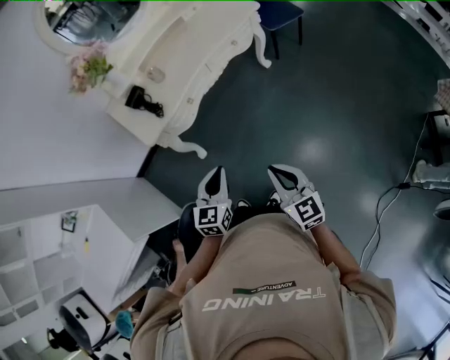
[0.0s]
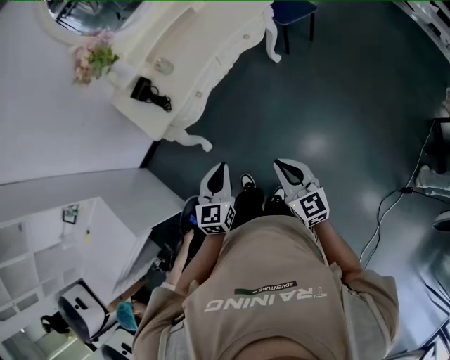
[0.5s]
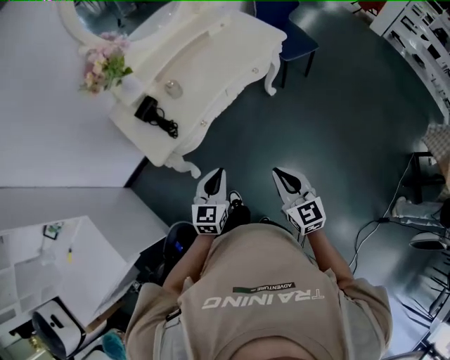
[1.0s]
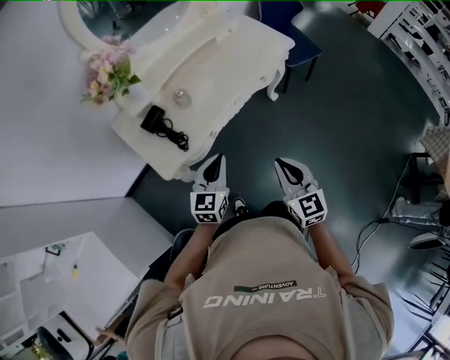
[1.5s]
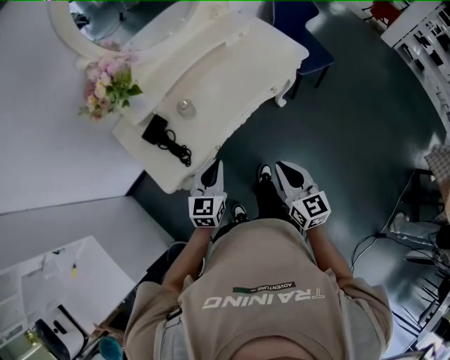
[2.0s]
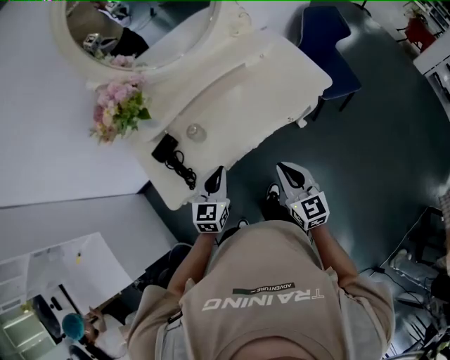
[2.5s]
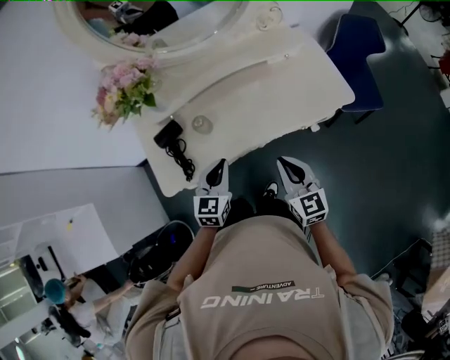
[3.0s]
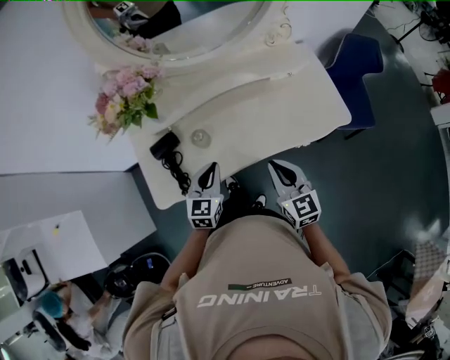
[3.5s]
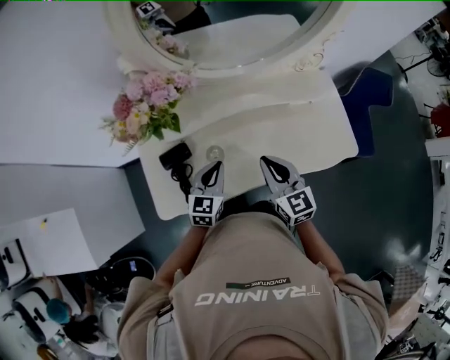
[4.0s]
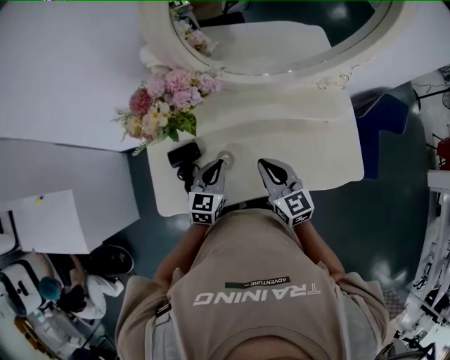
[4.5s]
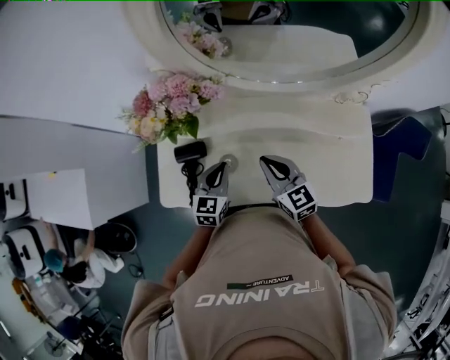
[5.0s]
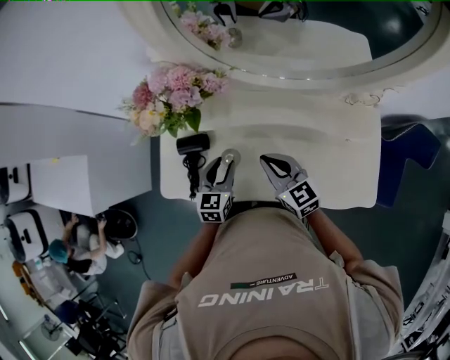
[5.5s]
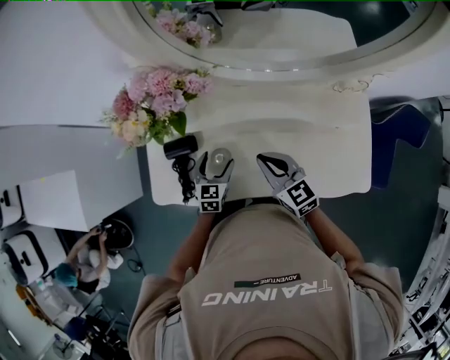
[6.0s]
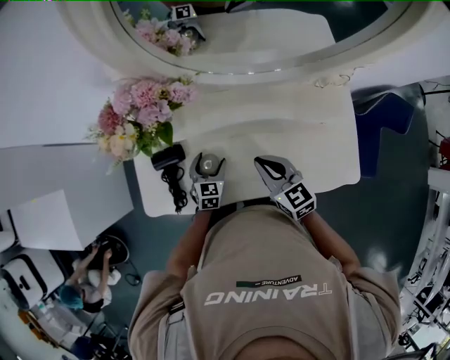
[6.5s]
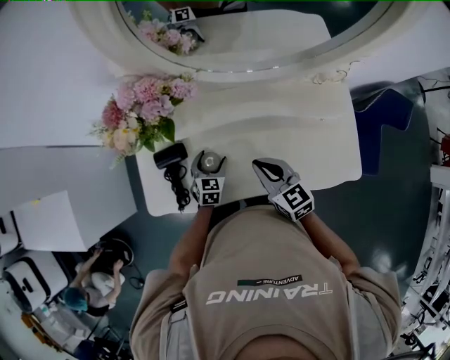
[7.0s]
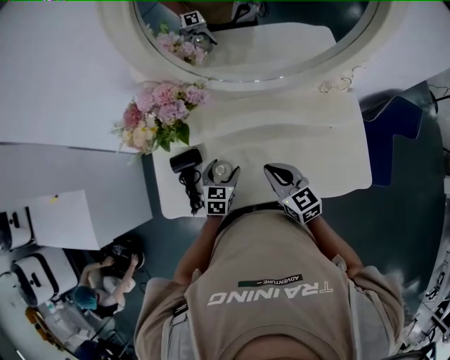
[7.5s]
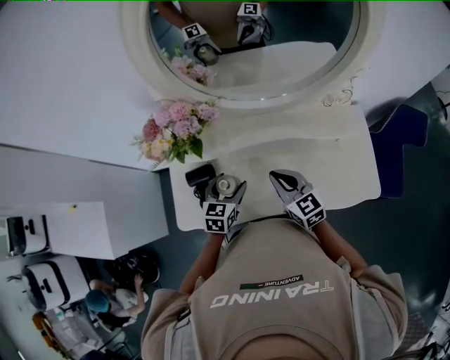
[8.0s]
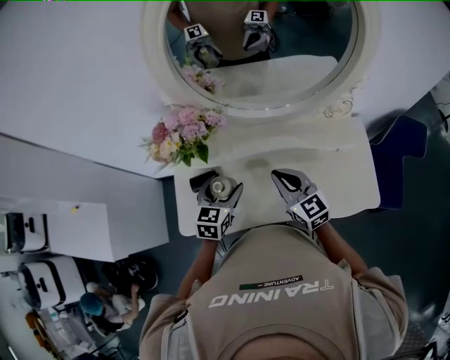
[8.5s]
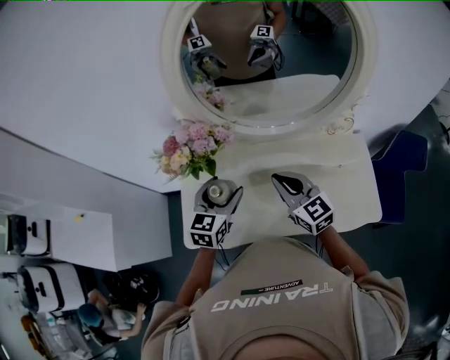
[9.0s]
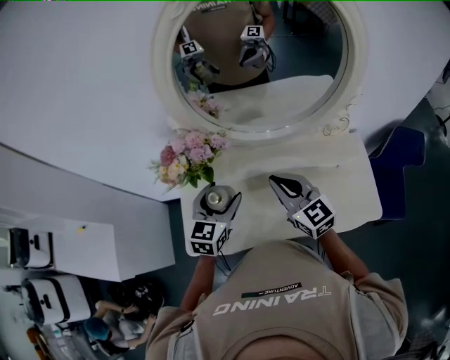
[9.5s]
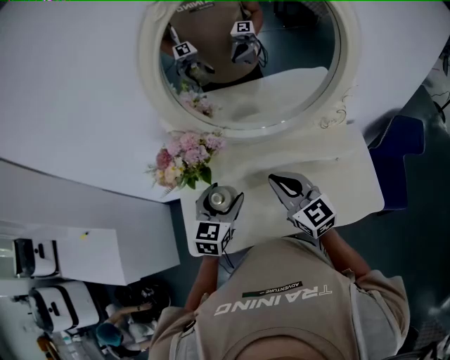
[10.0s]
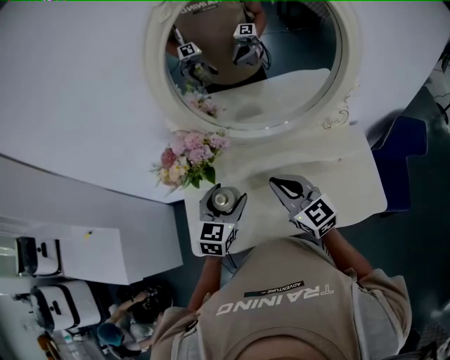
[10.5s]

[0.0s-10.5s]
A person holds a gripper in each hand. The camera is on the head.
0.0s to 2.0s: Both grippers travel together forward, some 30 cm.
2.0s to 4.0s: The left gripper changes place by about 20 cm, and rotates some 20 degrees, while the right gripper ends up approximately 30 cm from where it was, and rotates approximately 30 degrees.
4.0s to 6.5s: The right gripper changes place by approximately 10 cm, and swivels some 20 degrees, while the left gripper shifts some 15 cm downward, turns by roughly 20 degrees, and opens.
6.5s to 8.5s: The left gripper travels upward by roughly 20 cm. Meanwhile the right gripper goes roughly 5 cm upward.
8.5s to 10.5s: Both grippers move upward, roughly 5 cm.

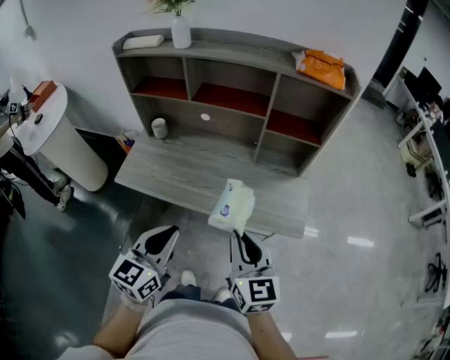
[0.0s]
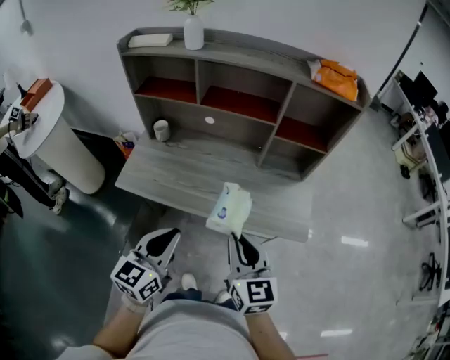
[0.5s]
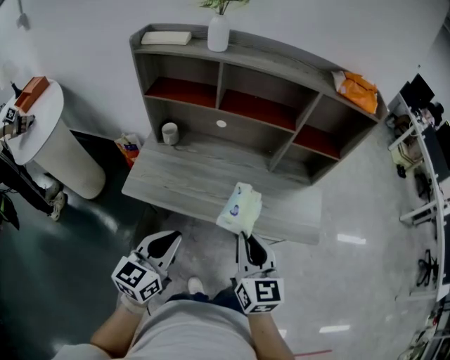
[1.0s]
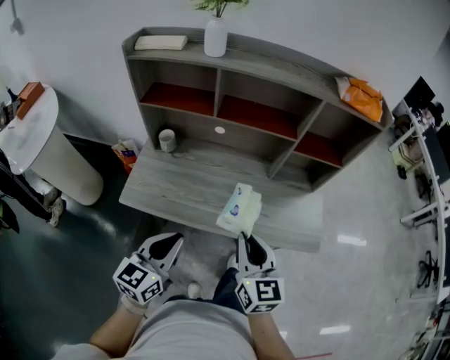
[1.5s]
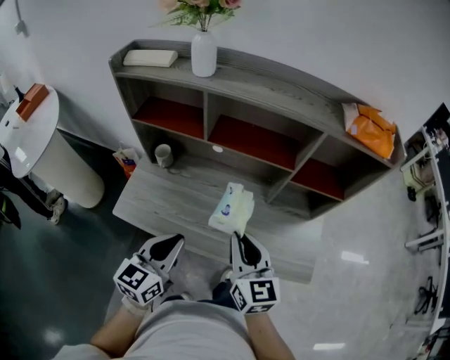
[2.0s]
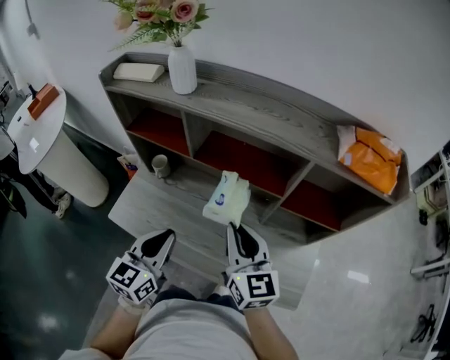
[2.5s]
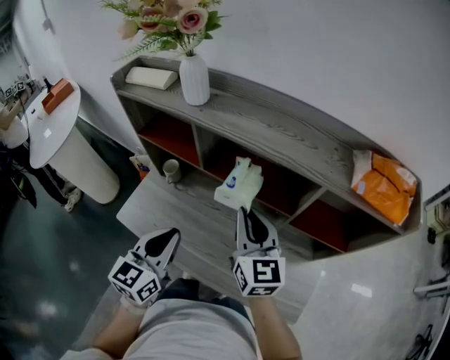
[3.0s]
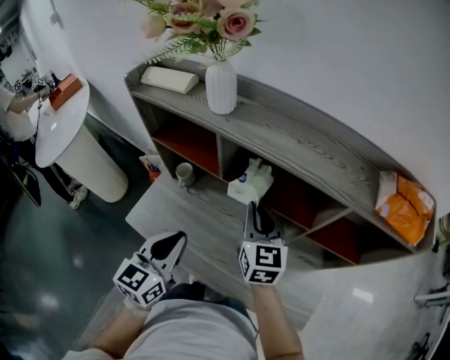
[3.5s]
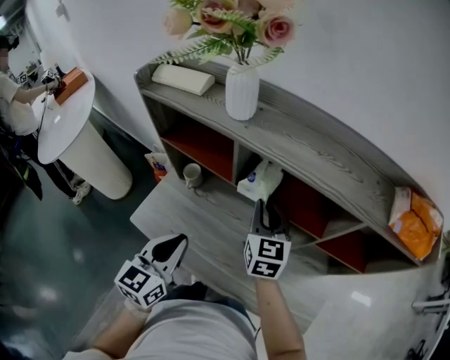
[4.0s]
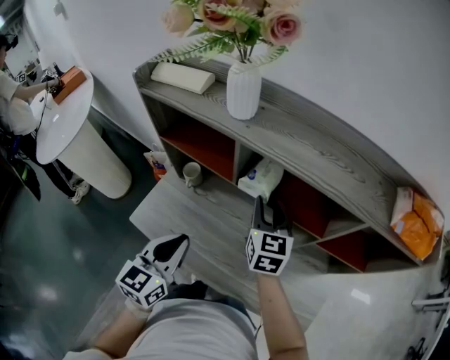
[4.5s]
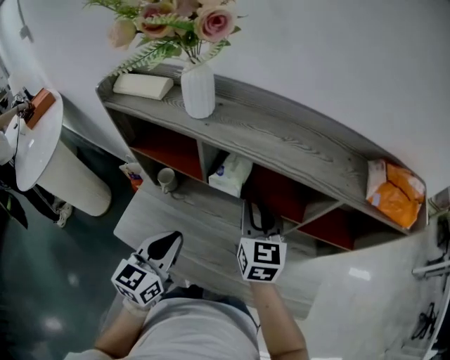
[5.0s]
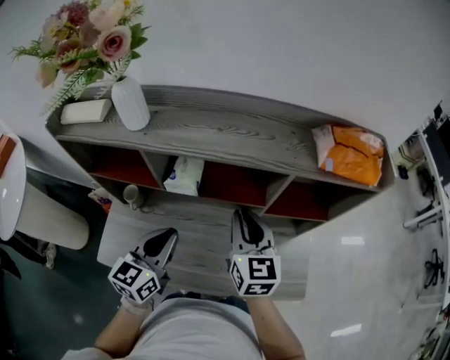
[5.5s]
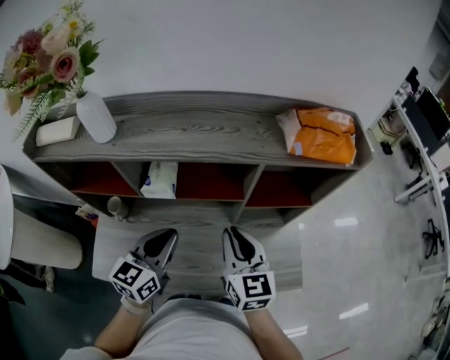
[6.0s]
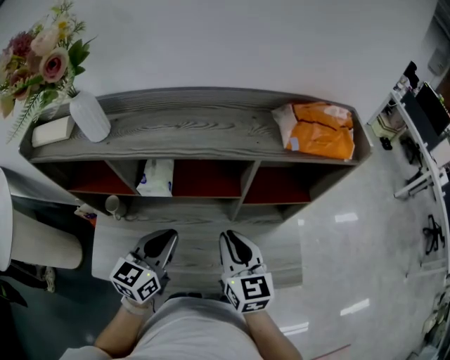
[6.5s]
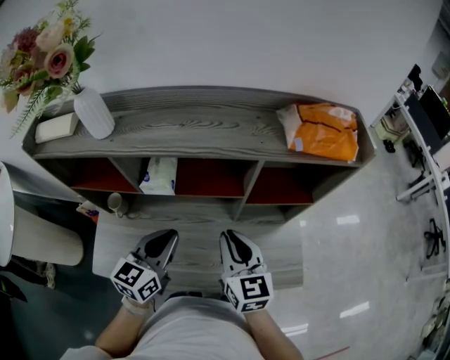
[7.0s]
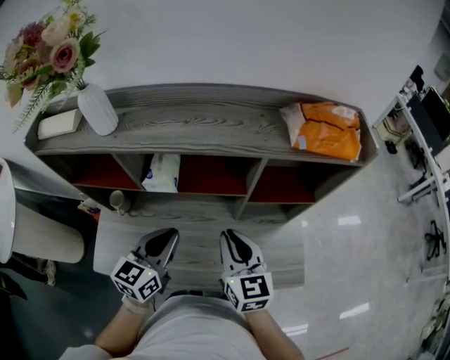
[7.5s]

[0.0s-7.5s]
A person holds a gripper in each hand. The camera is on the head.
0.0s to 2.0s: The two grippers go roughly 20 cm forward and to the left.
2.0s to 4.0s: The right gripper is displaced forward by approximately 25 cm. The left gripper is displaced forward by roughly 10 cm.
4.0s to 5.5s: The right gripper shifts about 15 cm to the right and backward; the left gripper shifts approximately 10 cm to the right and forward, and rotates approximately 20 degrees.
5.5s to 7.5s: The right gripper is displaced backward by some 5 cm.

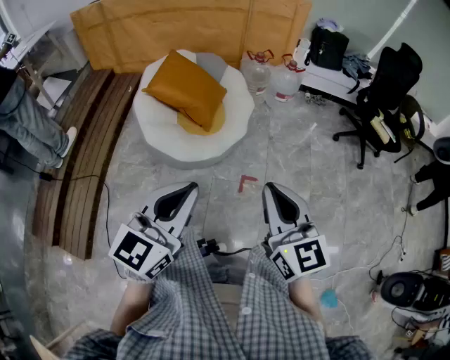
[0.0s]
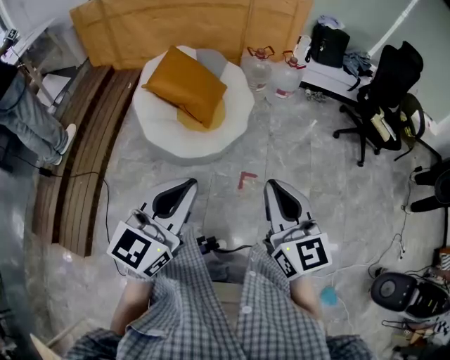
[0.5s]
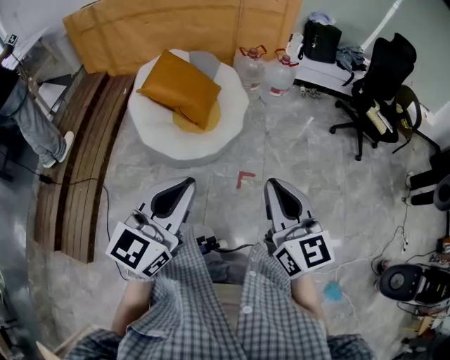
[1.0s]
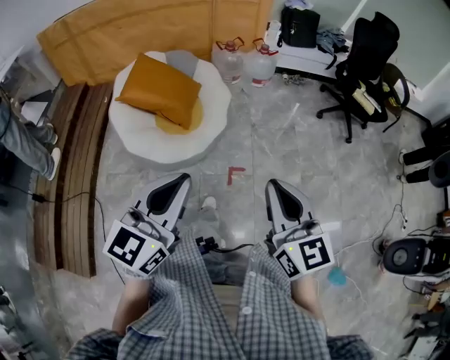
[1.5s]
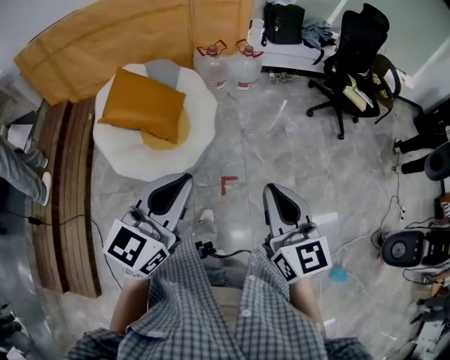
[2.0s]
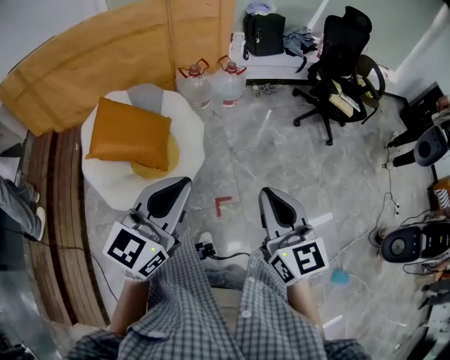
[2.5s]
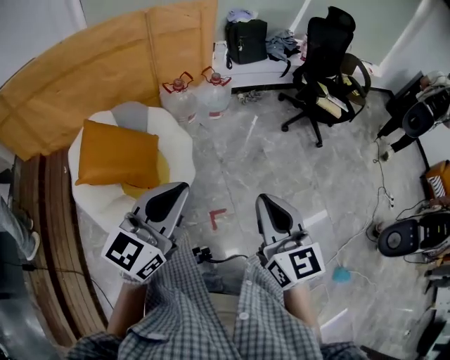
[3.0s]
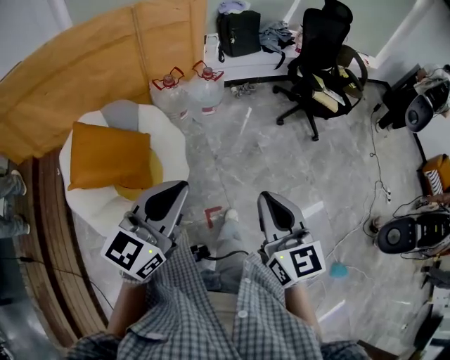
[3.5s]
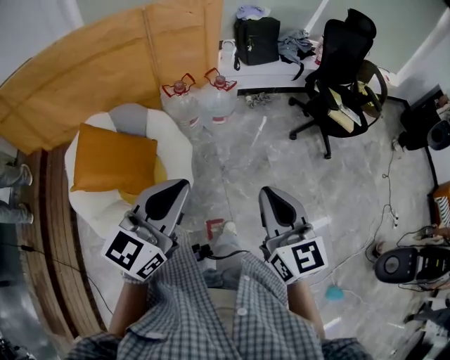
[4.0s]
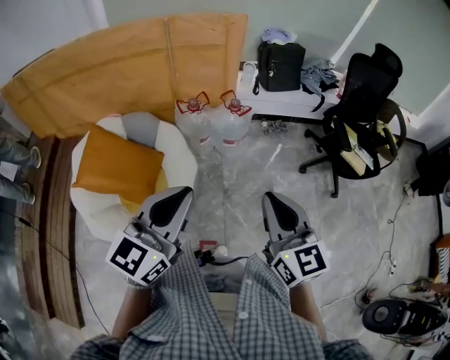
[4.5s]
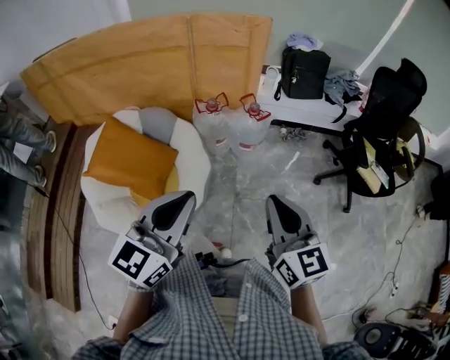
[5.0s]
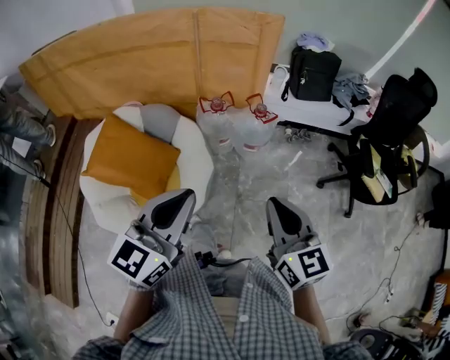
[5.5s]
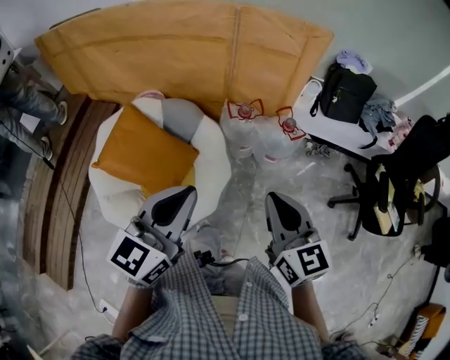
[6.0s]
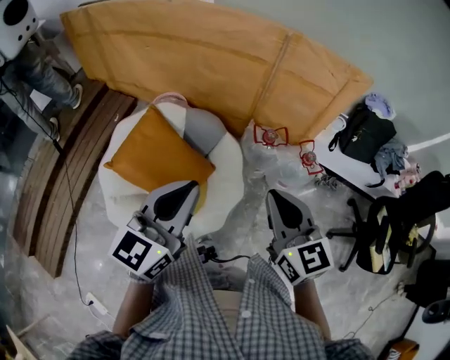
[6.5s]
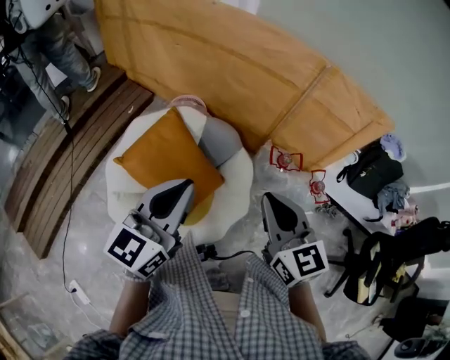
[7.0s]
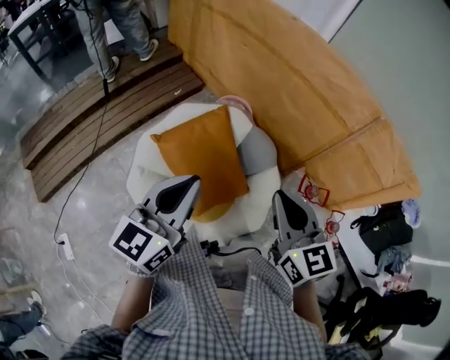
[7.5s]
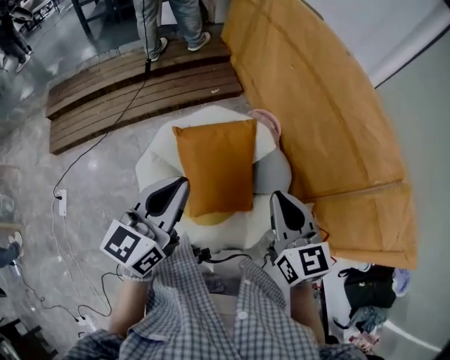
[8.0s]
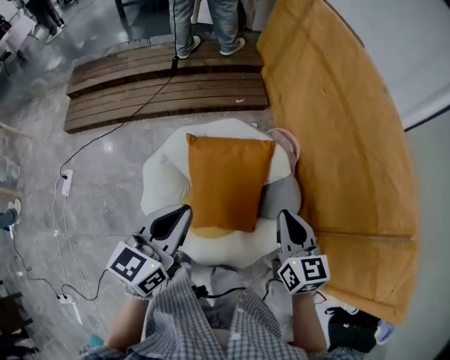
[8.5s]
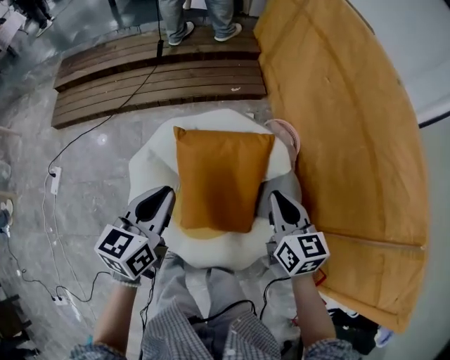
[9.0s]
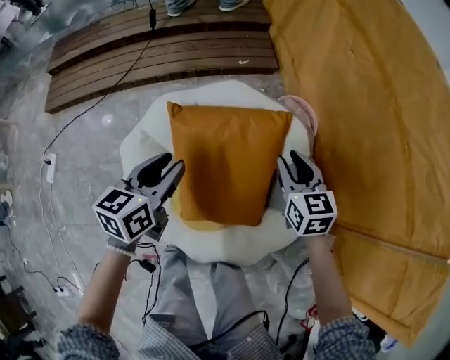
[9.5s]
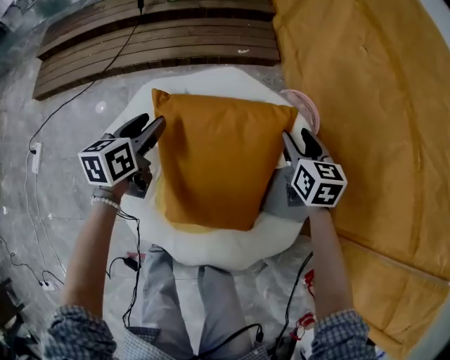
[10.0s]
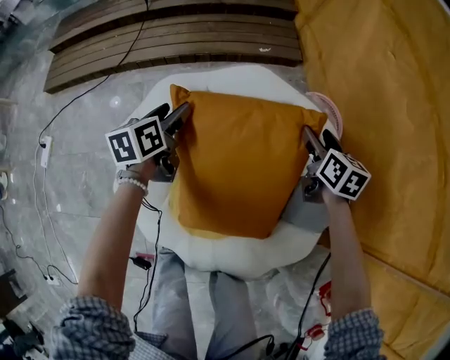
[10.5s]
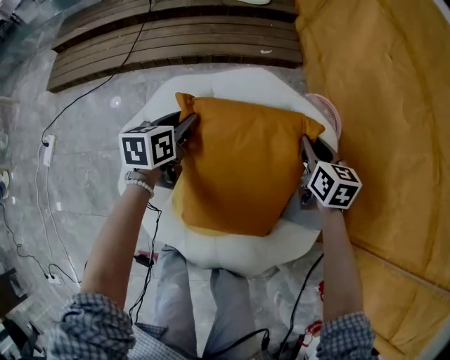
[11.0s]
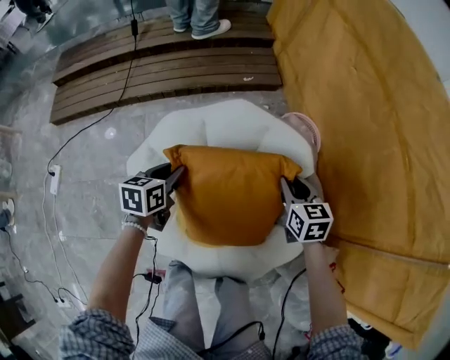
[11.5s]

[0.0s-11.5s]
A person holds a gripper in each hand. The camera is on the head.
0.0s to 2.0s: The left gripper moves forward, approximately 15 cm. Meanwhile the right gripper shifts some 10 cm forward and to the right.
2.0s to 4.0s: Both grippers move forward, some 25 cm.
4.0s to 6.0s: The left gripper changes place by about 20 cm, and changes its angle by about 30 degrees, while the right gripper ends up some 25 cm from where it was, and rotates approximately 30 degrees.
6.0s to 7.5s: The left gripper changes place by roughly 25 cm, and rotates about 40 degrees. The right gripper ends up about 30 cm from where it was, and swivels approximately 40 degrees.
7.5s to 9.5s: The two grippers go about 30 cm downward. The right gripper changes its angle by some 30 degrees, and opens its fingers; the left gripper rotates roughly 40 degrees, and opens its fingers.
9.5s to 11.5s: The left gripper is displaced downward by approximately 10 cm, and opens, then closes again; the right gripper is displaced downward by roughly 5 cm, and opens and closes again.
